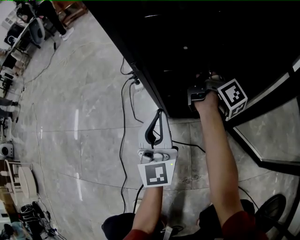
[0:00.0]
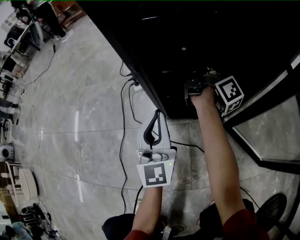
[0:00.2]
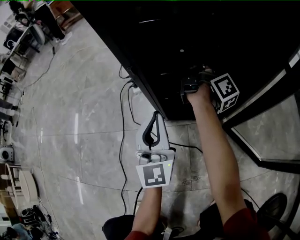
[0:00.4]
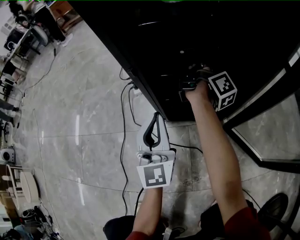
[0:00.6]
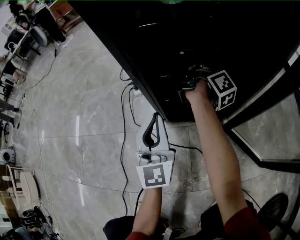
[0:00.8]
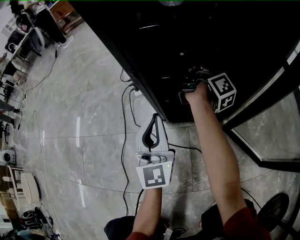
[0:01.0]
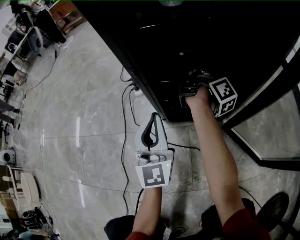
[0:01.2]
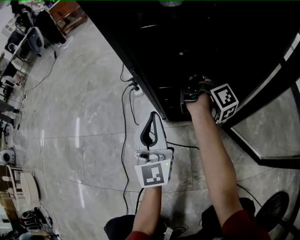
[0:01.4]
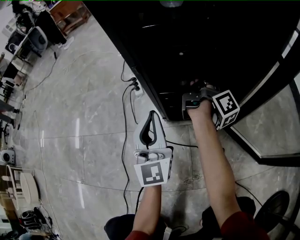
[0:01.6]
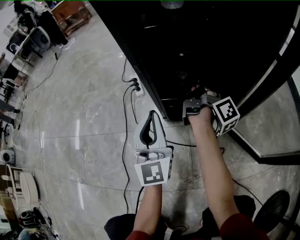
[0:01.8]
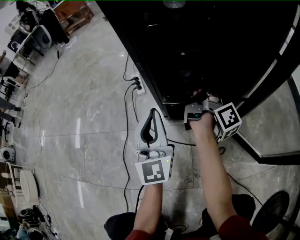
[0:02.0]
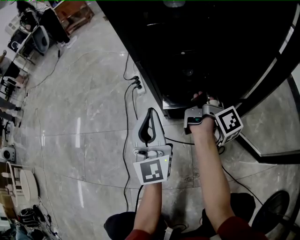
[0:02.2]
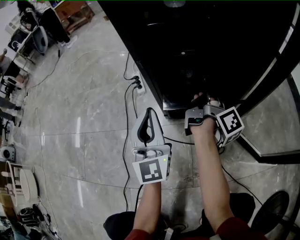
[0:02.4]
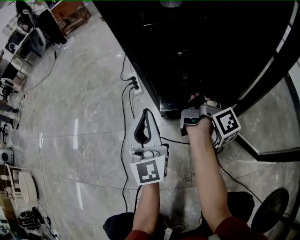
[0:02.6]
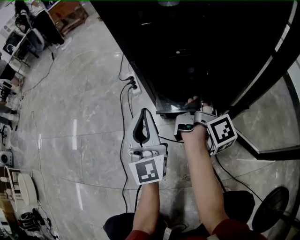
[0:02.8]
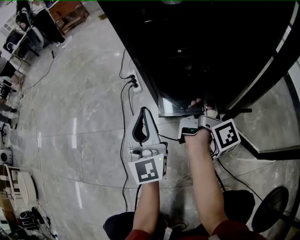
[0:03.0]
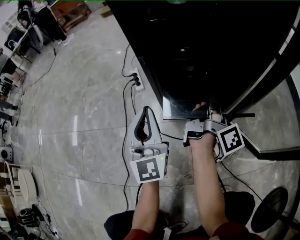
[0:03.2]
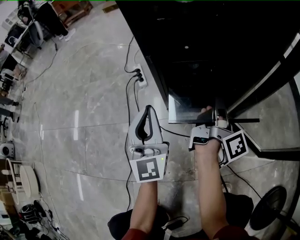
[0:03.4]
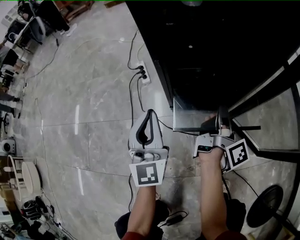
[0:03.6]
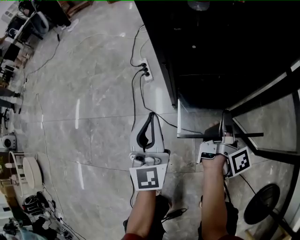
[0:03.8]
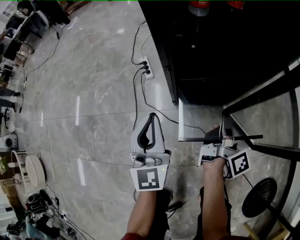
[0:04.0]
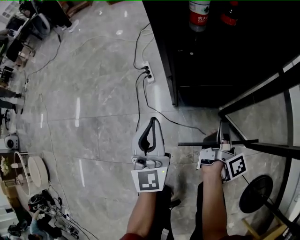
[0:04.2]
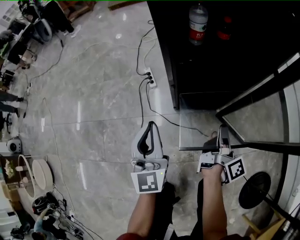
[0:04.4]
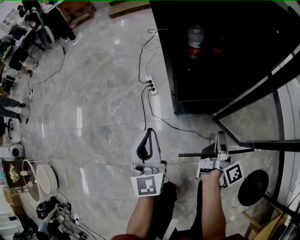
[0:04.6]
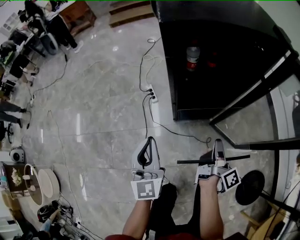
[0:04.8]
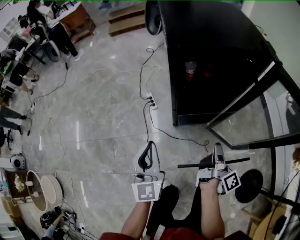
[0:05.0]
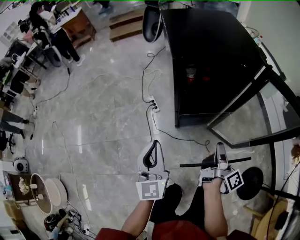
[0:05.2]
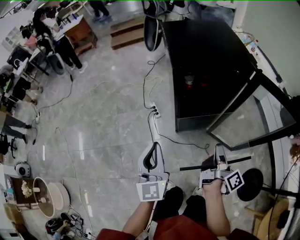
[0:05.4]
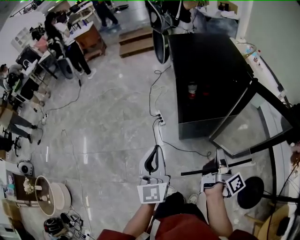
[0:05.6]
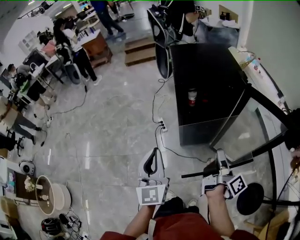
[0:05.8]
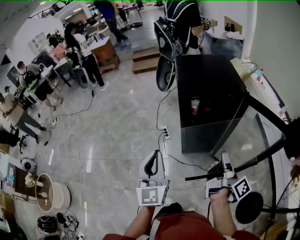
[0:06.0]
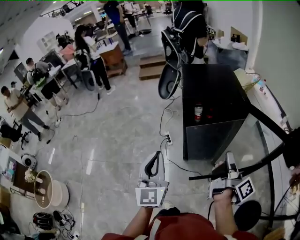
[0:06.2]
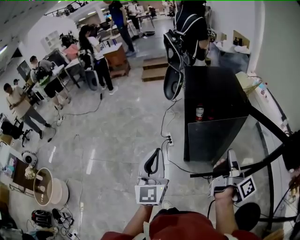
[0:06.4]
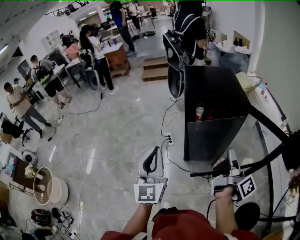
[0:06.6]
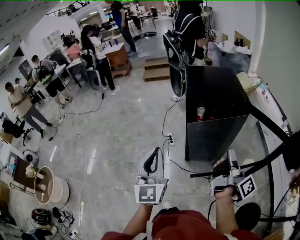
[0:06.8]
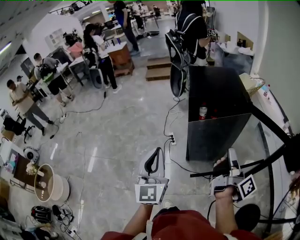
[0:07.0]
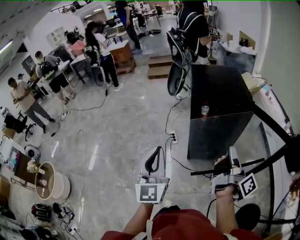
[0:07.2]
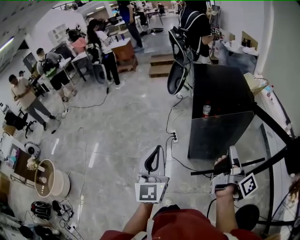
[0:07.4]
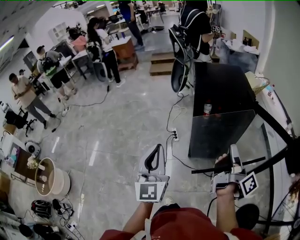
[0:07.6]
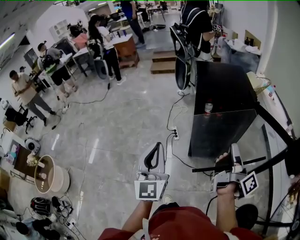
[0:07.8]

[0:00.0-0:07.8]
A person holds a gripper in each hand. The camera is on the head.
0:00.0 to 0:01.6: The right gripper closes up.
0:01.6 to 0:03.2: The right gripper travels backward by some 15 cm.
0:03.2 to 0:04.6: The right gripper travels upward and backward by approximately 30 cm. The left gripper travels upward by roughly 30 cm.
0:04.6 to 0:06.2: The right gripper heads upward, covering approximately 40 cm. Meanwhile the left gripper is displaced upward and backward by some 40 cm.
0:06.2 to 0:07.8: There are only small adjustments of the grippers.

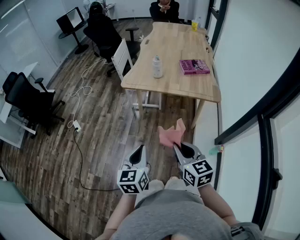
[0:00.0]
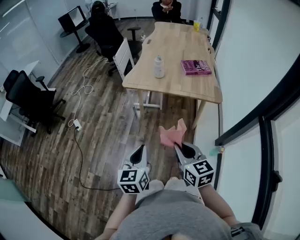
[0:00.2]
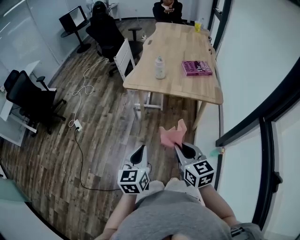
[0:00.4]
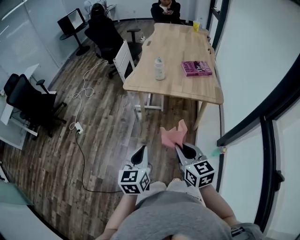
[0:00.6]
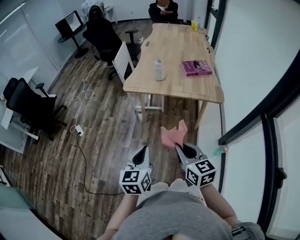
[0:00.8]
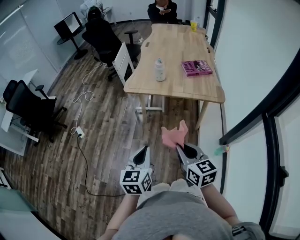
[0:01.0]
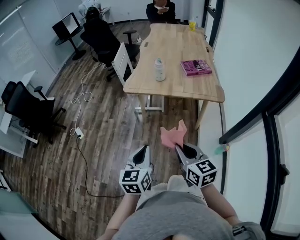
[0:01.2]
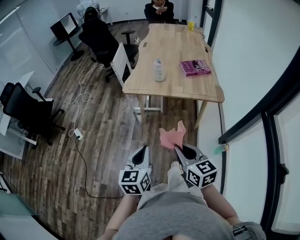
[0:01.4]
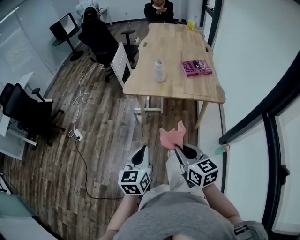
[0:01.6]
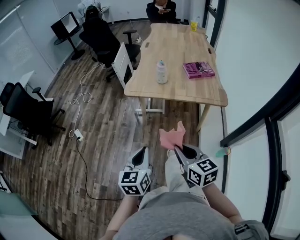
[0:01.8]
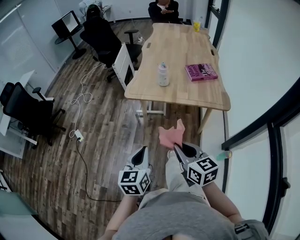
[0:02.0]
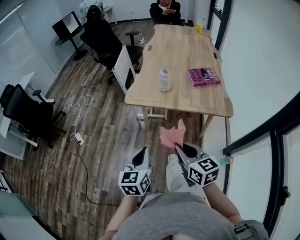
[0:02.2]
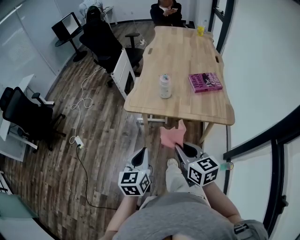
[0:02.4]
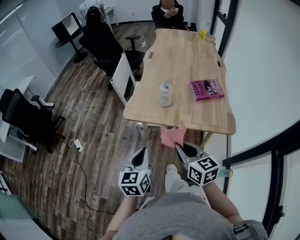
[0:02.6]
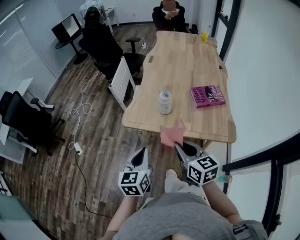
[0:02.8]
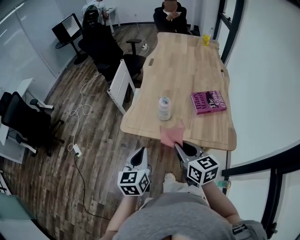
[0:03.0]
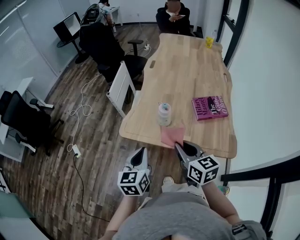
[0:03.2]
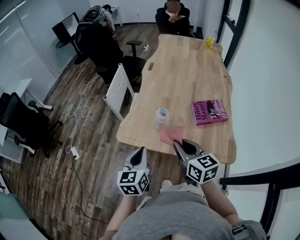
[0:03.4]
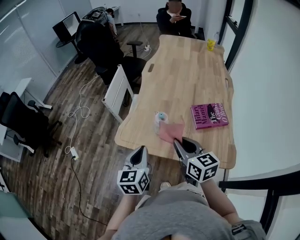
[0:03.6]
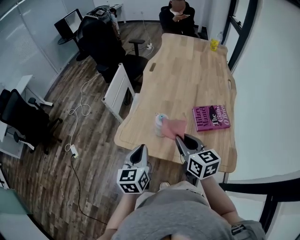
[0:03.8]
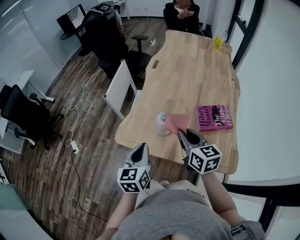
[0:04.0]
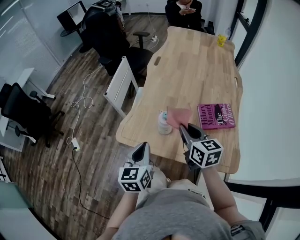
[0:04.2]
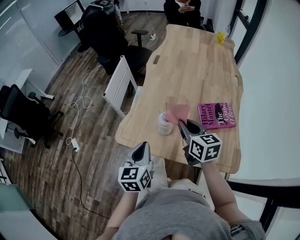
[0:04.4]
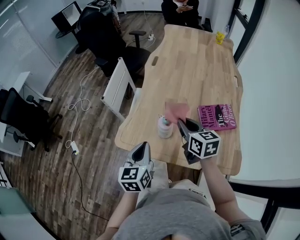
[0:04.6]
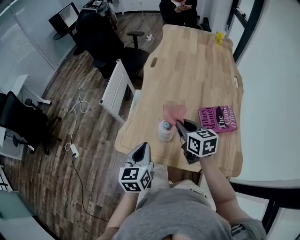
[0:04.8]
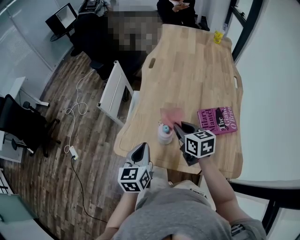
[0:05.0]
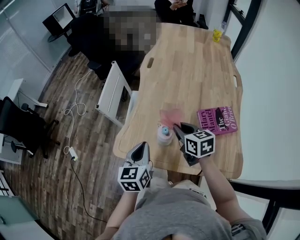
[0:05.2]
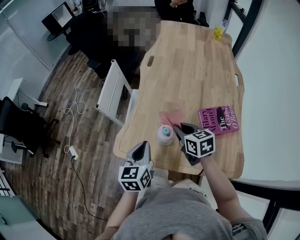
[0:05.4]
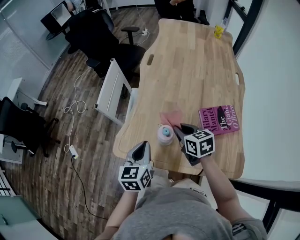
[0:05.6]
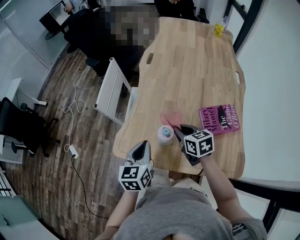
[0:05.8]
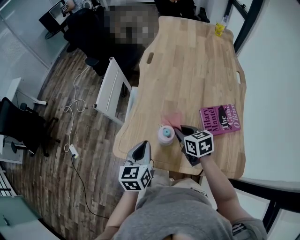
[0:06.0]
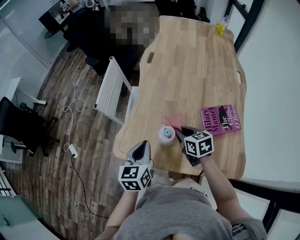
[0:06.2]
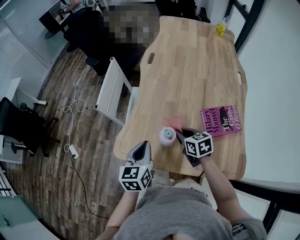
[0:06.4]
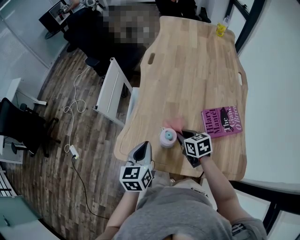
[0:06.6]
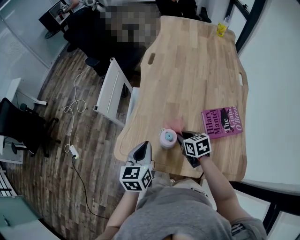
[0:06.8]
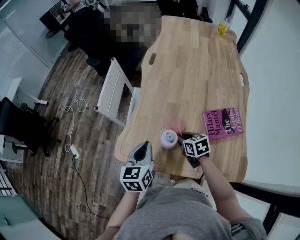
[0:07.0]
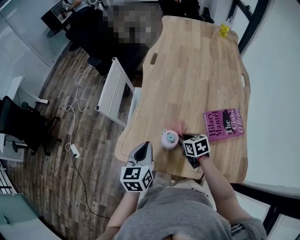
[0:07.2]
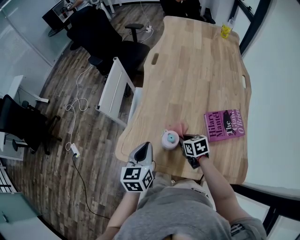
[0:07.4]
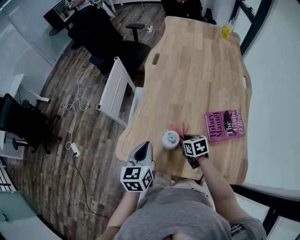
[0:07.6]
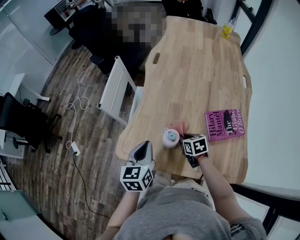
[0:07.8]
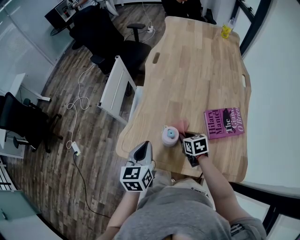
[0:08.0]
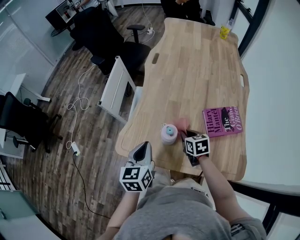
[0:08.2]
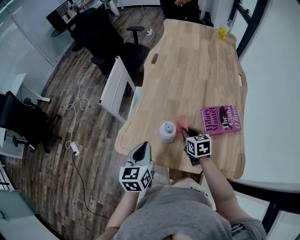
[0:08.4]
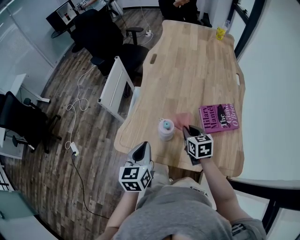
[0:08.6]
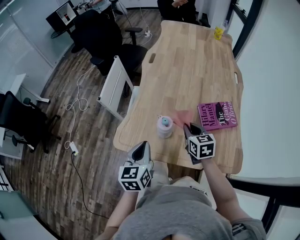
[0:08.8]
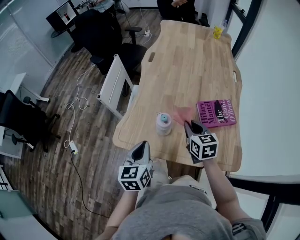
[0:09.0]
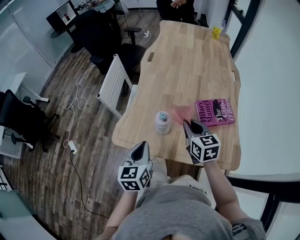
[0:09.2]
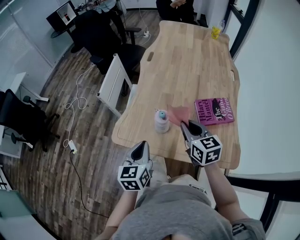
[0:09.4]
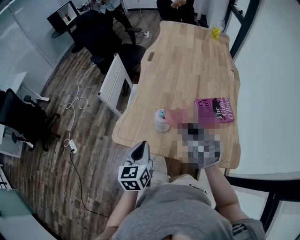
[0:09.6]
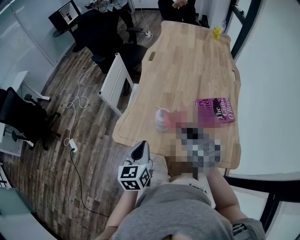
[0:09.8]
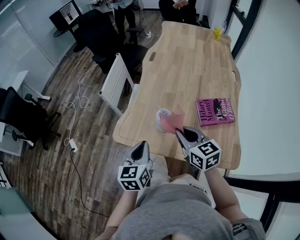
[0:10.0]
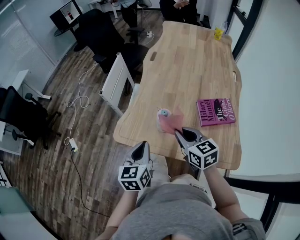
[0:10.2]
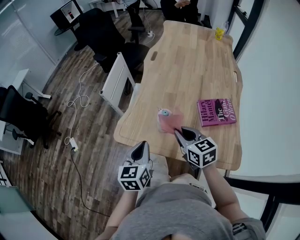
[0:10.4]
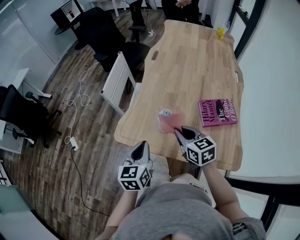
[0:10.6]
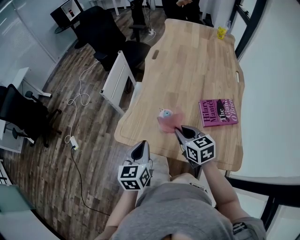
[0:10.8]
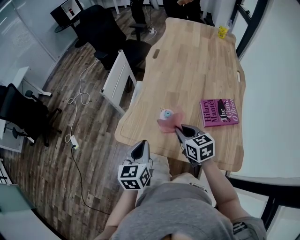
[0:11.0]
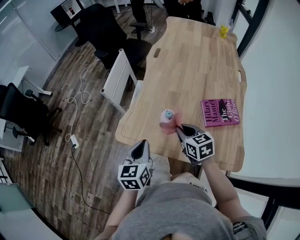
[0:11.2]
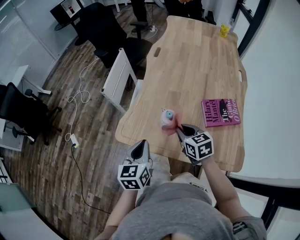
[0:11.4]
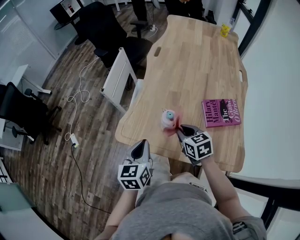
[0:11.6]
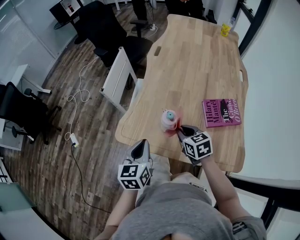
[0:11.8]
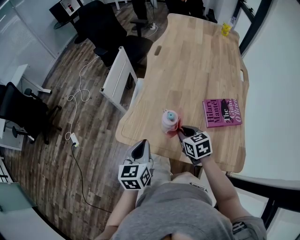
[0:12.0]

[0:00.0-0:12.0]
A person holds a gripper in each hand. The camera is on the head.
0:00.0 to 0:01.6: The left gripper shifts about 5 cm forward. Meanwhile the right gripper moves about 5 cm.
0:01.6 to 0:03.0: Both grippers travel together forward, approximately 30 cm.
0:03.0 to 0:04.4: The left gripper travels forward by some 15 cm. Meanwhile the right gripper is displaced forward by some 20 cm.
0:04.4 to 0:06.0: The right gripper goes approximately 15 cm downward and forward; the left gripper is displaced forward by approximately 10 cm.
0:06.0 to 0:07.6: The right gripper heads downward, covering roughly 10 cm.
0:07.6 to 0:09.0: The left gripper travels backward by roughly 10 cm; the right gripper is displaced upward by roughly 15 cm, and rotates approximately 30 degrees.
0:09.0 to 0:10.4: The right gripper goes roughly 5 cm to the left.
0:10.4 to 0:12.0: The right gripper travels downward by approximately 10 cm.

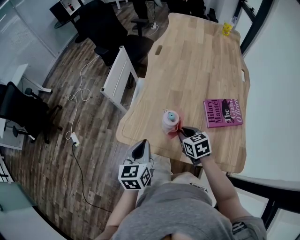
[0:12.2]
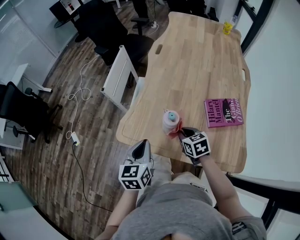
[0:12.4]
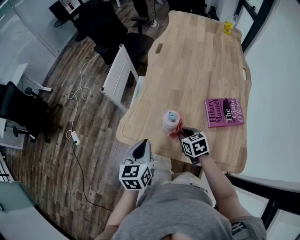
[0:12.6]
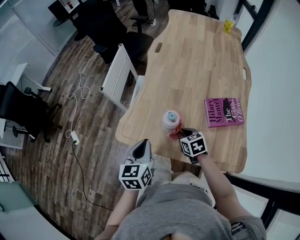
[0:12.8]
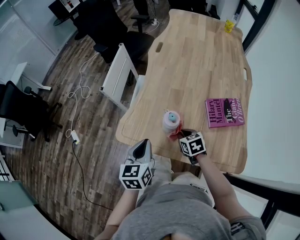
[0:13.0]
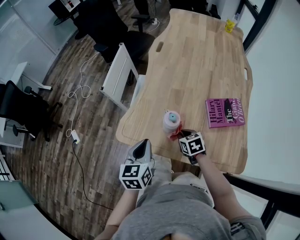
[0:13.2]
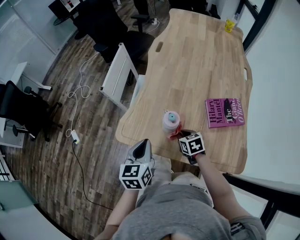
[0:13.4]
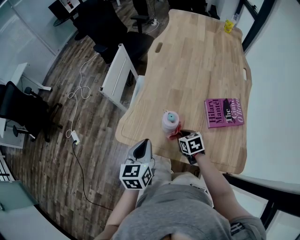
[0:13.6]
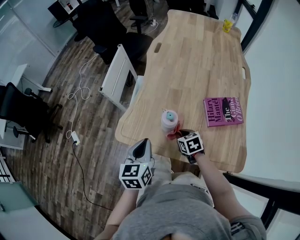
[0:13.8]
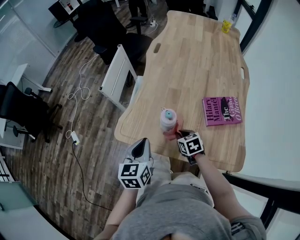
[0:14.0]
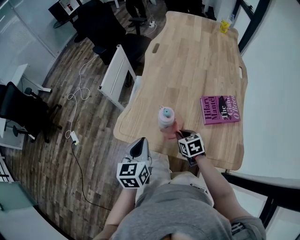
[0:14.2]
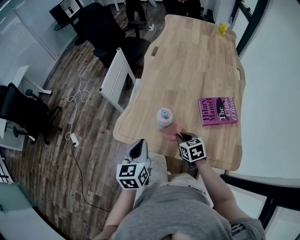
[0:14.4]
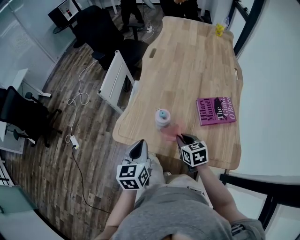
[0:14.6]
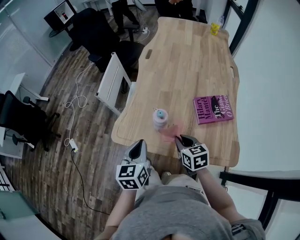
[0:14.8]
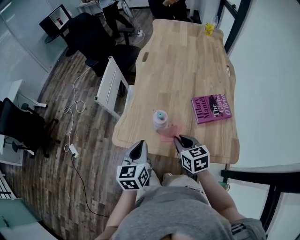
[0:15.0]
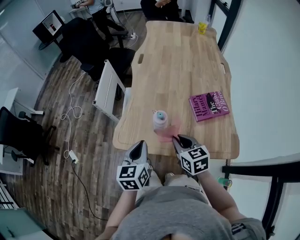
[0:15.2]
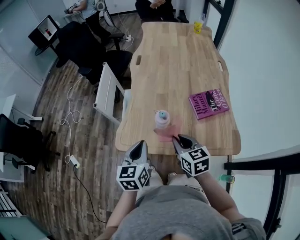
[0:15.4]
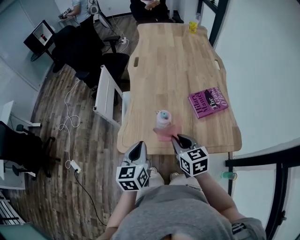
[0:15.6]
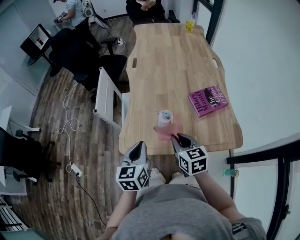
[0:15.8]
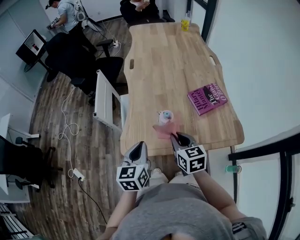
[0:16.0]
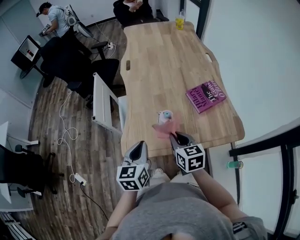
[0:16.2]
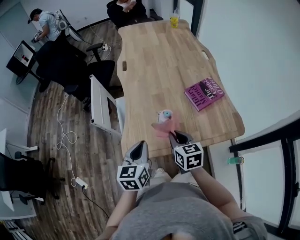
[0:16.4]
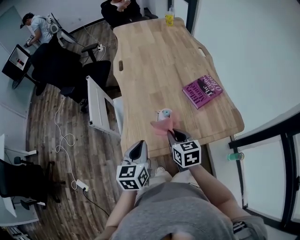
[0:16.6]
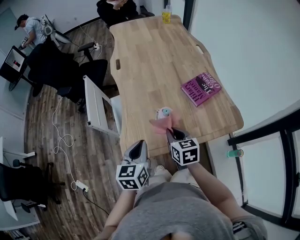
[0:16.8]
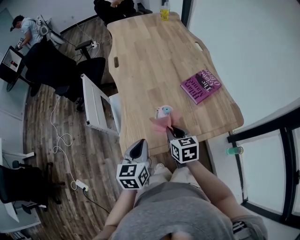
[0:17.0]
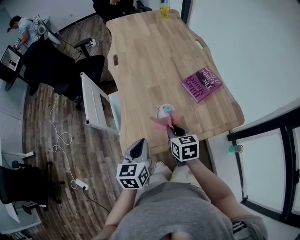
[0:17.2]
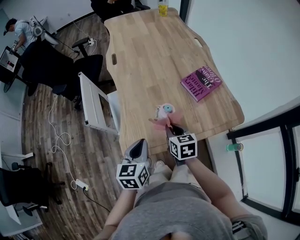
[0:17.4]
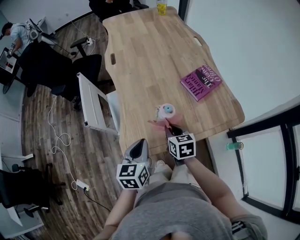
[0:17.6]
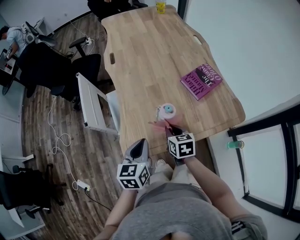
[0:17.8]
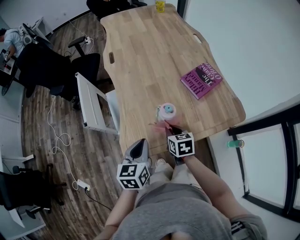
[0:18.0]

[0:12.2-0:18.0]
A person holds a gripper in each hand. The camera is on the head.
0:12.2 to 0:13.6: The right gripper is displaced downward by about 10 cm.
0:13.6 to 0:15.0: The right gripper travels upward and backward by roughly 15 cm, and swivels roughly 20 degrees.
0:15.0 to 0:16.6: Both grippers move to the left, about 5 cm. The right gripper changes its angle by roughly 30 degrees. Meanwhile the left gripper rotates roughly 20 degrees.
0:16.6 to 0:18.0: The right gripper moves downward, roughly 10 cm.
